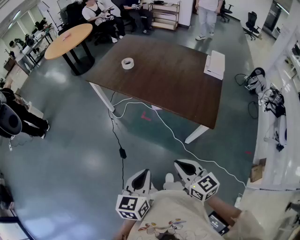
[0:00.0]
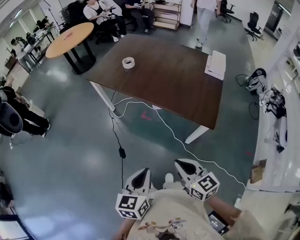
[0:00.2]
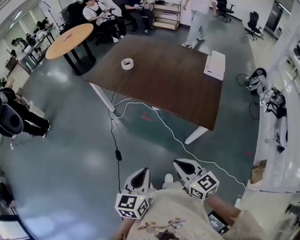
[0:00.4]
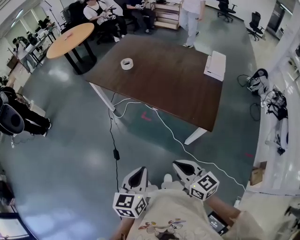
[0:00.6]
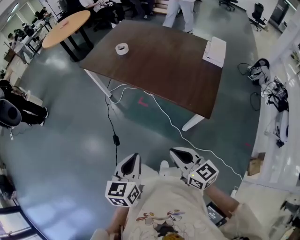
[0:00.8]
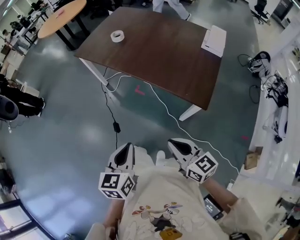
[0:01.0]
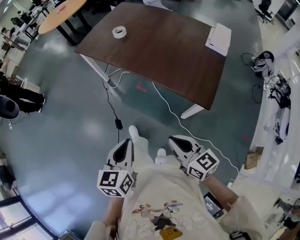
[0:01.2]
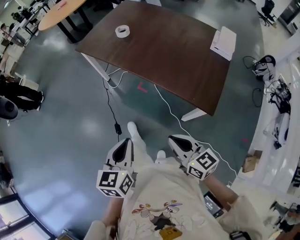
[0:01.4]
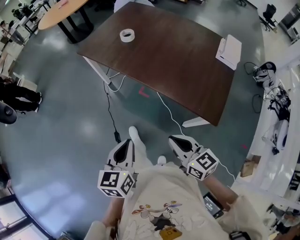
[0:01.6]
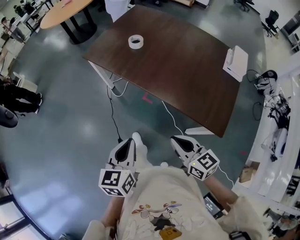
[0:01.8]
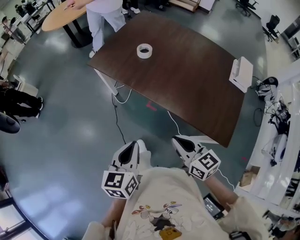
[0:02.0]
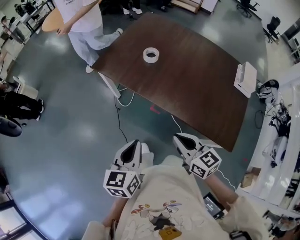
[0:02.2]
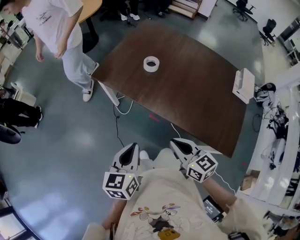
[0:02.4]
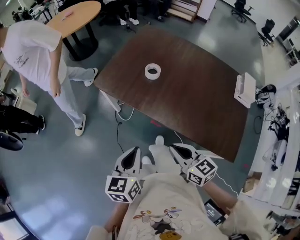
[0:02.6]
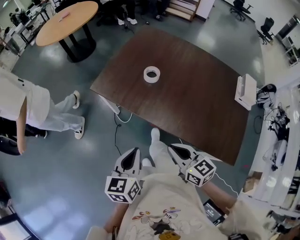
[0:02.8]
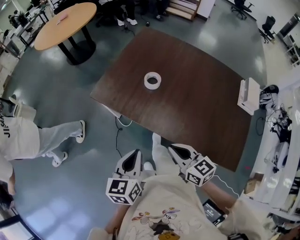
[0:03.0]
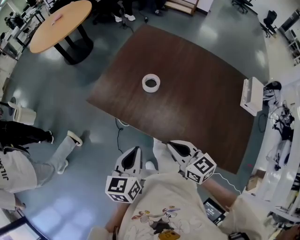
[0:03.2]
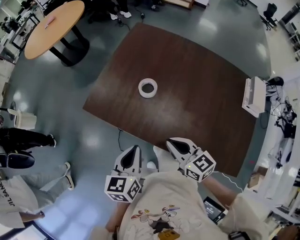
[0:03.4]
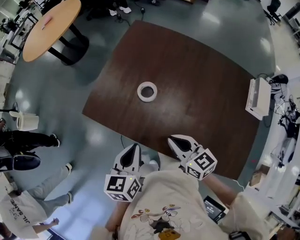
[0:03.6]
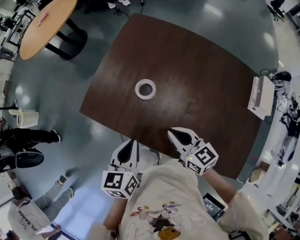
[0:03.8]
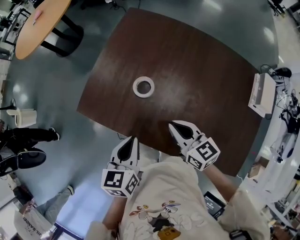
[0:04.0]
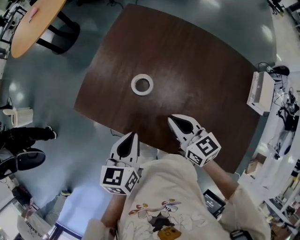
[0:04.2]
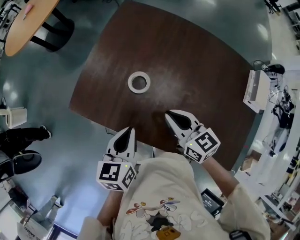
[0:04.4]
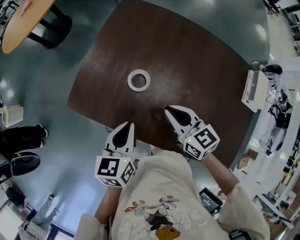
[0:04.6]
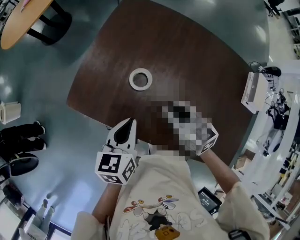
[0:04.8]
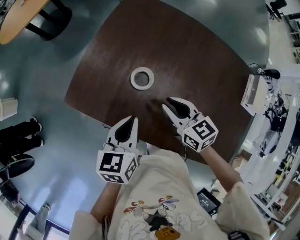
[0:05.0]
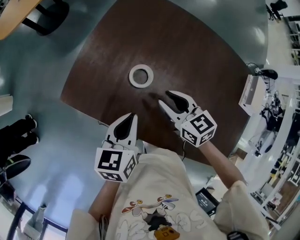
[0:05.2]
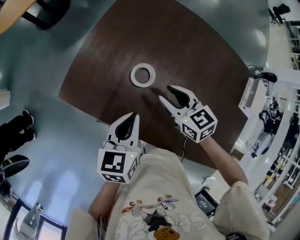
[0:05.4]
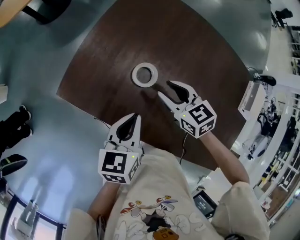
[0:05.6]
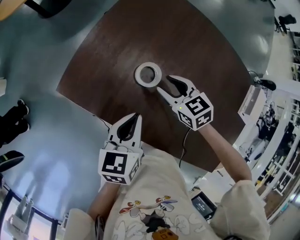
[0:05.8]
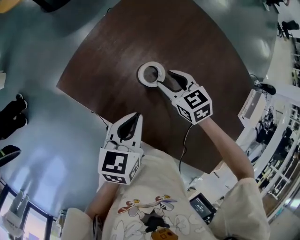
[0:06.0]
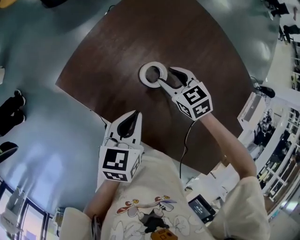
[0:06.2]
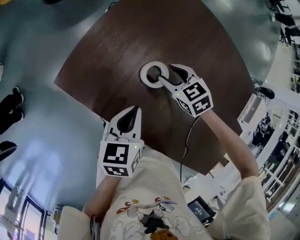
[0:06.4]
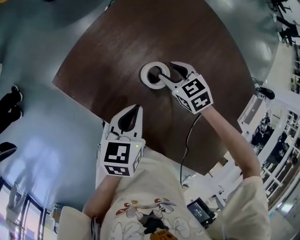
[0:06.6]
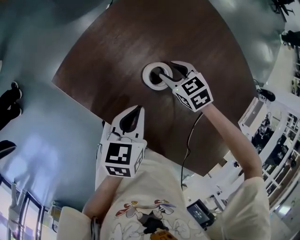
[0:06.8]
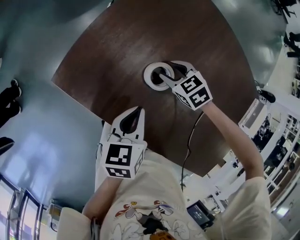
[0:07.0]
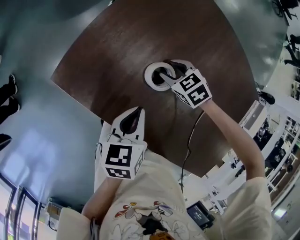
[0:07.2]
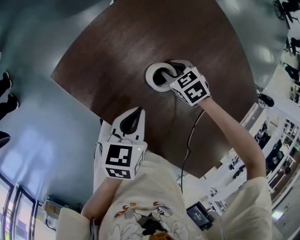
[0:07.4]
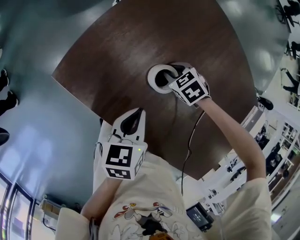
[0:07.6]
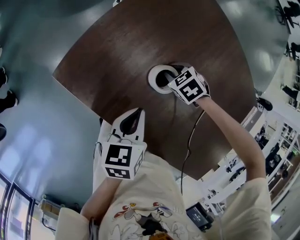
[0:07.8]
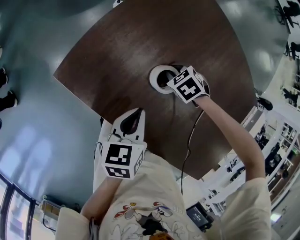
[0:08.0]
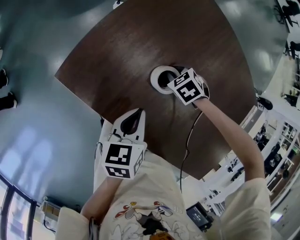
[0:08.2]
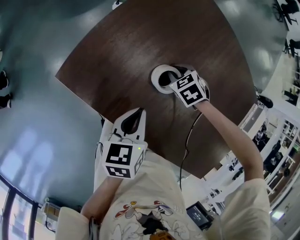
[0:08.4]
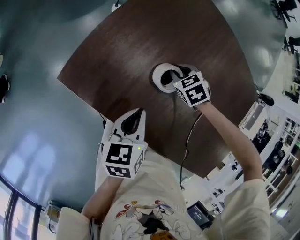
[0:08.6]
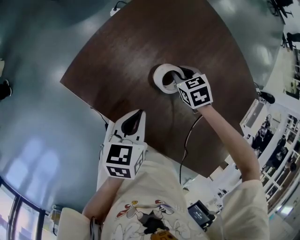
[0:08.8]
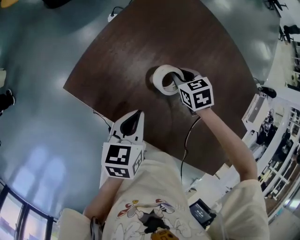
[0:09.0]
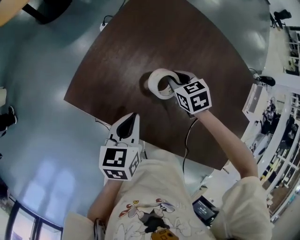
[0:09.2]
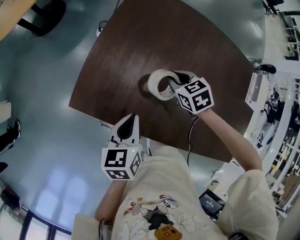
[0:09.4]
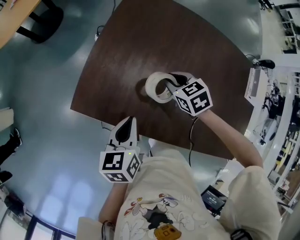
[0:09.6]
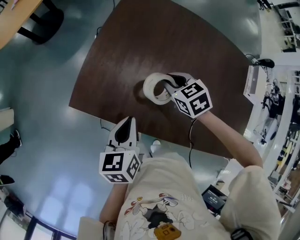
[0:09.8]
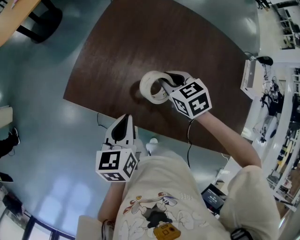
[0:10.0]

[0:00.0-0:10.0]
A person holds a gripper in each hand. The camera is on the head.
0:00.0 to 0:01.4: The left gripper shifts about 10 cm forward, while the right gripper moves forward and to the right, roughly 10 cm.
0:01.4 to 0:02.8: The two grippers travel together, forward and to the left, about 50 cm.
0:02.8 to 0:04.2: The two grippers go some 35 cm forward.
0:04.2 to 0:05.8: The left gripper travels forward and downward by about 10 cm. Meanwhile the right gripper travels forward, downward and to the left by roughly 20 cm, turns by about 30 degrees, and opens up.
0:05.8 to 0:07.2: The right gripper shifts some 15 cm downward and forward, and changes its angle by roughly 30 degrees. Meanwhile the left gripper travels downward by some 10 cm.
0:07.2 to 0:08.6: The right gripper closes up.
0:08.6 to 0:10.0: The left gripper heads upward and backward, covering approximately 15 cm; the right gripper travels upward and backward by some 20 cm, and rotates about 30 degrees.

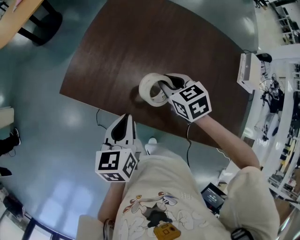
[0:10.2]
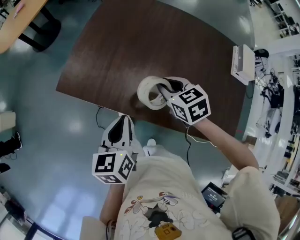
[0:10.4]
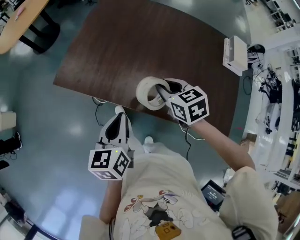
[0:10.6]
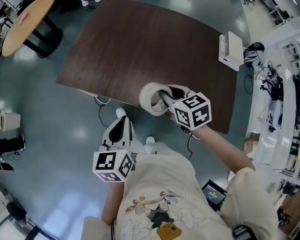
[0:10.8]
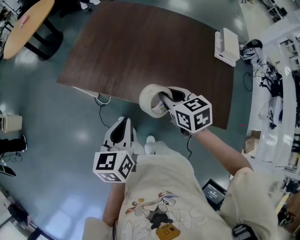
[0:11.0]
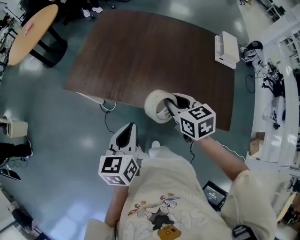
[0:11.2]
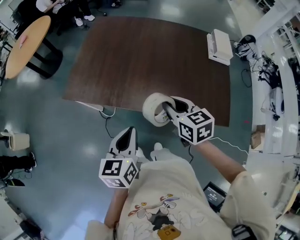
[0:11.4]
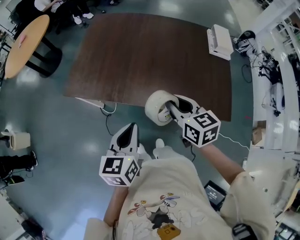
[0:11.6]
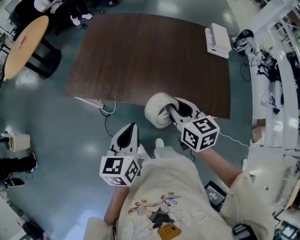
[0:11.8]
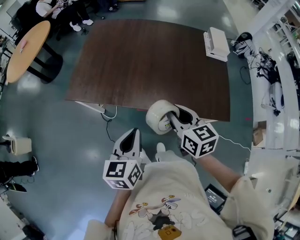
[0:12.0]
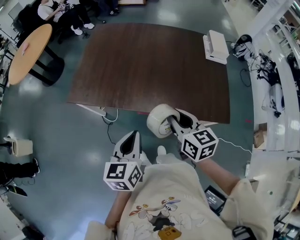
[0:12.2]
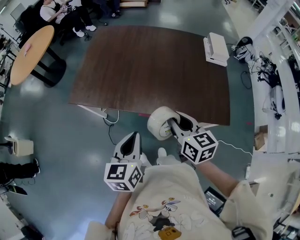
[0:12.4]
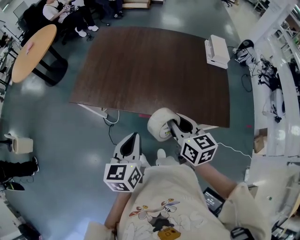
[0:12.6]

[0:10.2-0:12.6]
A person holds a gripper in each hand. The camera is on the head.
0:10.2 to 0:11.4: The right gripper goes approximately 35 cm backward and upward, and swivels roughly 30 degrees. The left gripper is displaced backward by approximately 30 cm.
0:11.4 to 0:12.6: The right gripper shifts some 10 cm backward, while the left gripper moves about 5 cm.

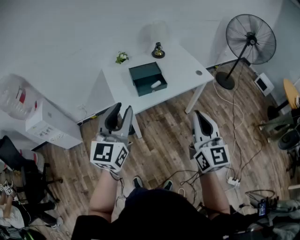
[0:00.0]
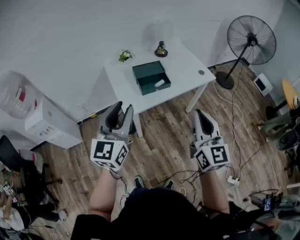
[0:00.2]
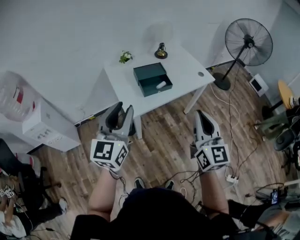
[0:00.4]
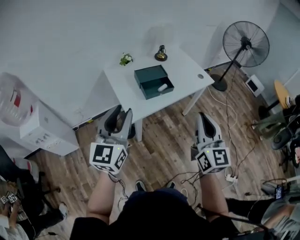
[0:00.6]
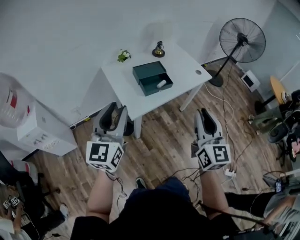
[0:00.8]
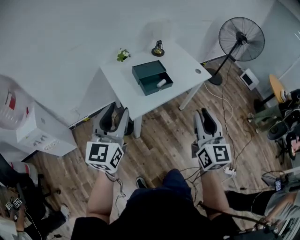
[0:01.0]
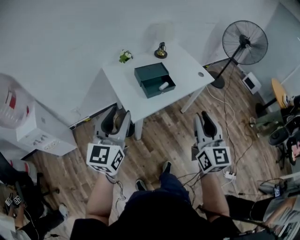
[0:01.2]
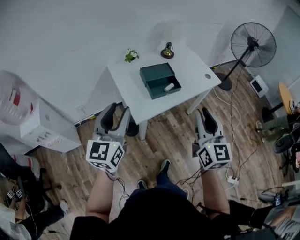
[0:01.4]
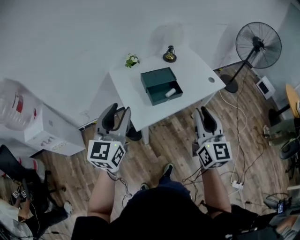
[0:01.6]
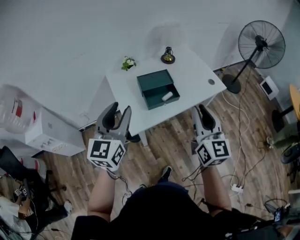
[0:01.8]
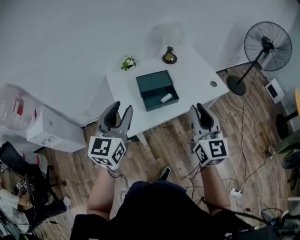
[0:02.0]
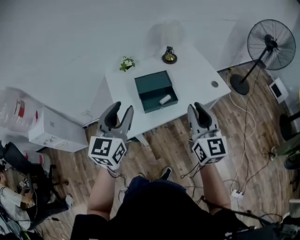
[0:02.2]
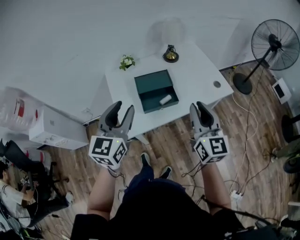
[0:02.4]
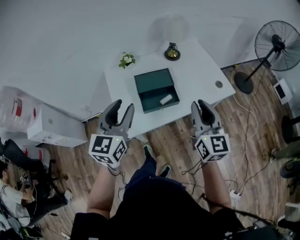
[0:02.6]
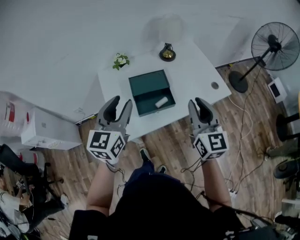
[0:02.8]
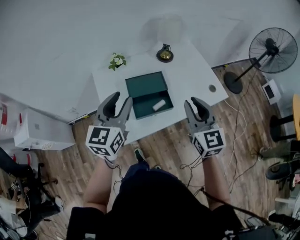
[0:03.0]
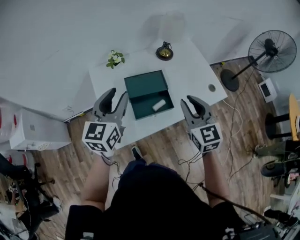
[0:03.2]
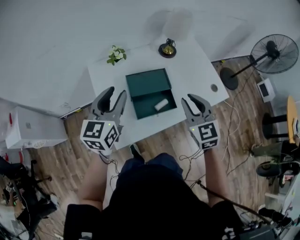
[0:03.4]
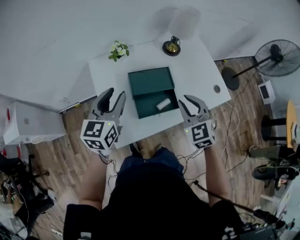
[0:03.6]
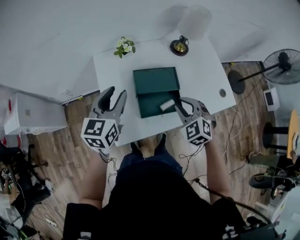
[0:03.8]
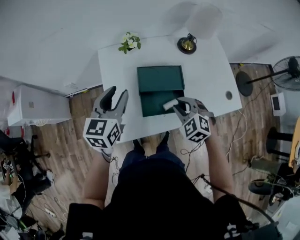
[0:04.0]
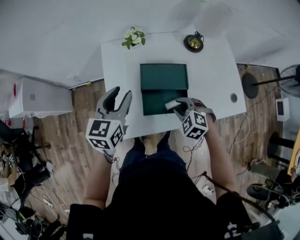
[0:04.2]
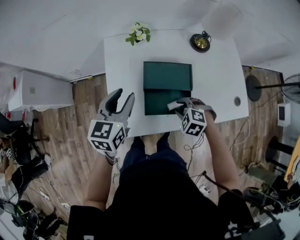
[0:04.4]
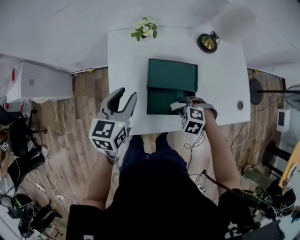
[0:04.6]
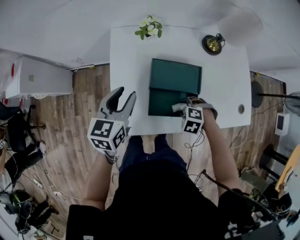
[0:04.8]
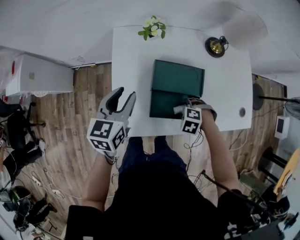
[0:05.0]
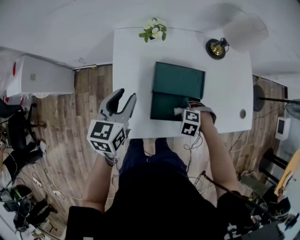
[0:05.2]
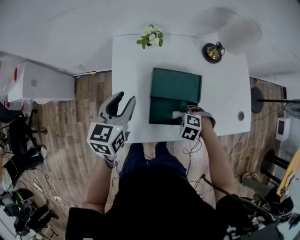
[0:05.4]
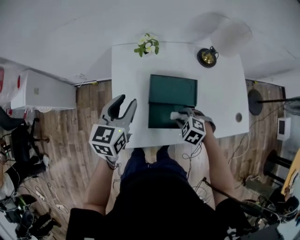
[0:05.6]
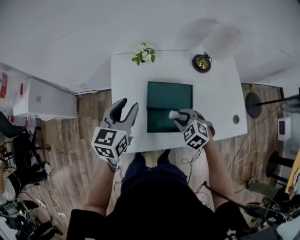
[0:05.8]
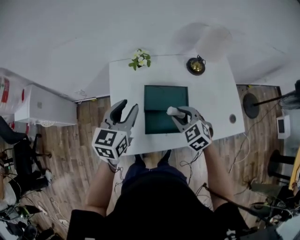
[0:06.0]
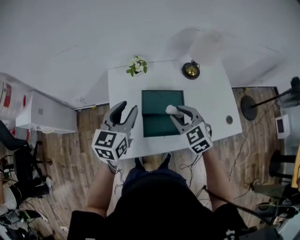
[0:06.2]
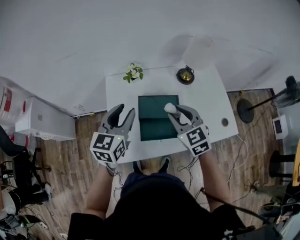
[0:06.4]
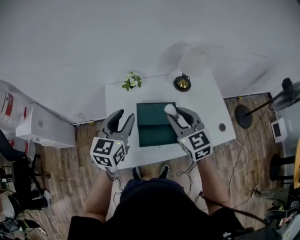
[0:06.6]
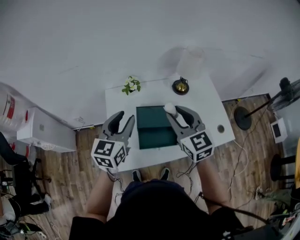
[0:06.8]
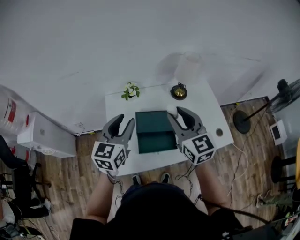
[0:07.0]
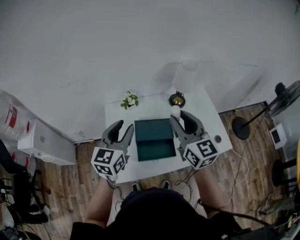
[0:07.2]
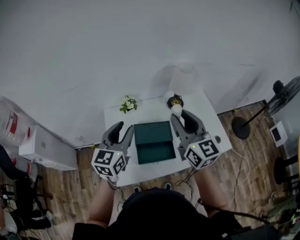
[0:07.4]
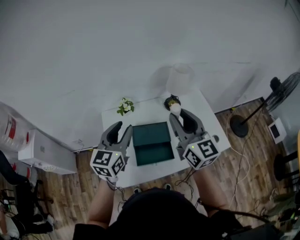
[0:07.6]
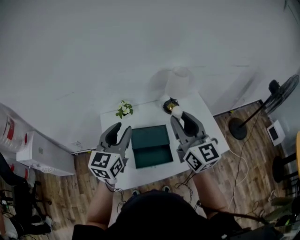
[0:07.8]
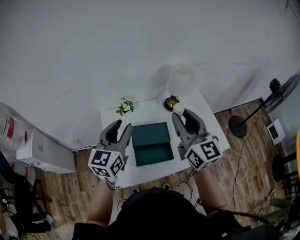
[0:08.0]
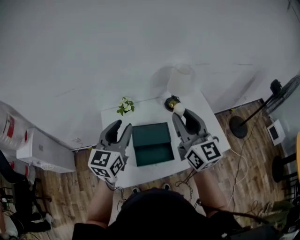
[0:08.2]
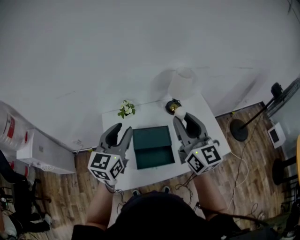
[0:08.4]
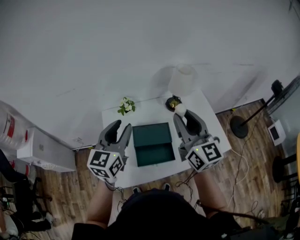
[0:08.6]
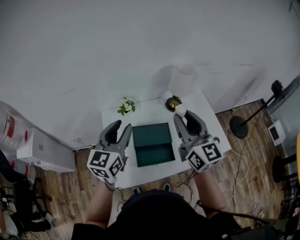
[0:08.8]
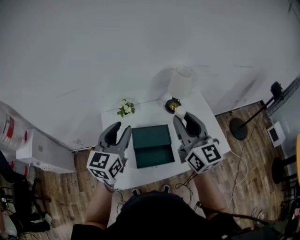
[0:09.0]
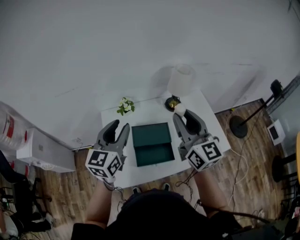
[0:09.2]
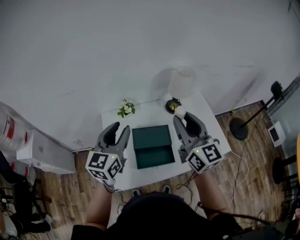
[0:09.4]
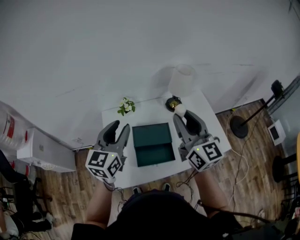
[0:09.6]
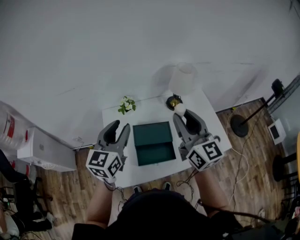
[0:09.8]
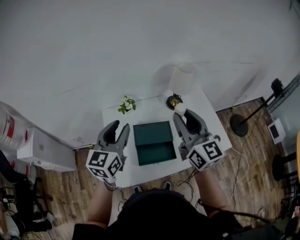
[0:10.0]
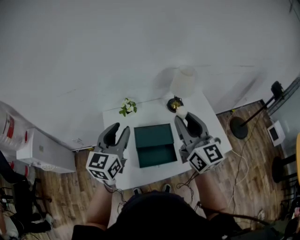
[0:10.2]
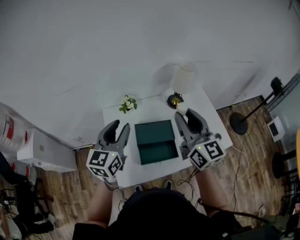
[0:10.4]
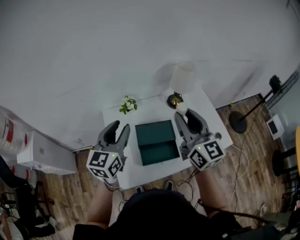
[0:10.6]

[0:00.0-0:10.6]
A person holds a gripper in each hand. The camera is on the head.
0:00.0 to 0:01.6: The two grippers go roughly 20 cm to the left and forward. The right gripper opens up.
0:01.6 to 0:03.0: The left gripper moves forward and to the right, roughly 30 cm, while the right gripper goes approximately 25 cm forward, and rotates some 20 degrees.
0:03.0 to 0:04.6: The left gripper shifts some 20 cm downward, and changes its angle by some 30 degrees, while the right gripper travels downward by roughly 35 cm, and tilts its fingers about 70 degrees downward.
0:04.6 to 0:06.0: The right gripper shifts some 15 cm upward, and angles its fingers upward, by approximately 30 degrees. The left gripper is displaced upward by about 5 cm.
0:06.0 to 0:07.6: The right gripper shifts approximately 30 cm upward, and tilts its fingers some 50 degrees upward. Meanwhile the left gripper goes approximately 15 cm upward.
0:07.6 to 0:10.6: The grippers stay close to where they were, moving slightly.
